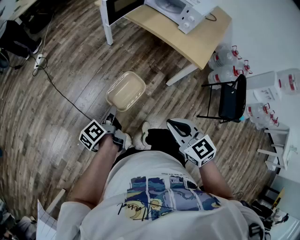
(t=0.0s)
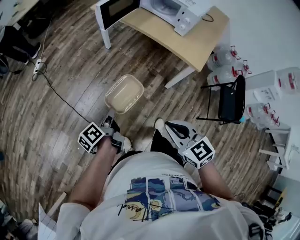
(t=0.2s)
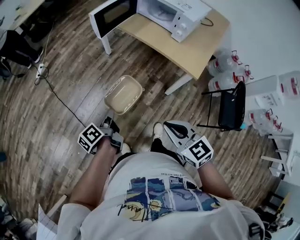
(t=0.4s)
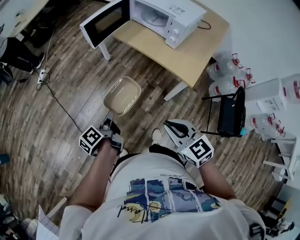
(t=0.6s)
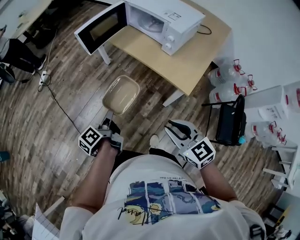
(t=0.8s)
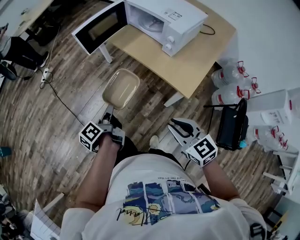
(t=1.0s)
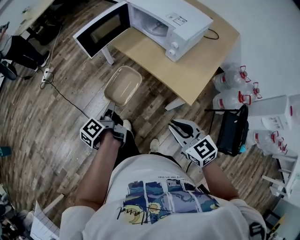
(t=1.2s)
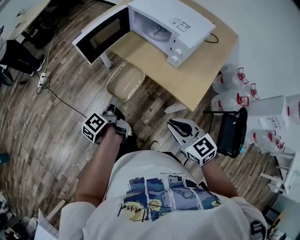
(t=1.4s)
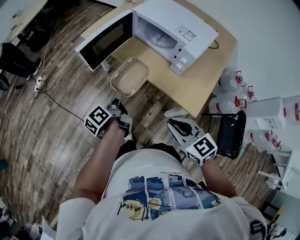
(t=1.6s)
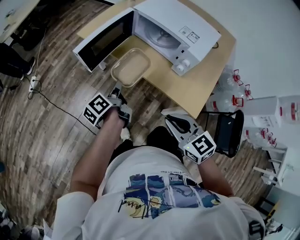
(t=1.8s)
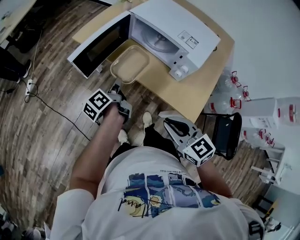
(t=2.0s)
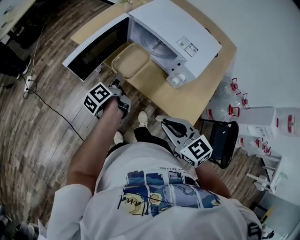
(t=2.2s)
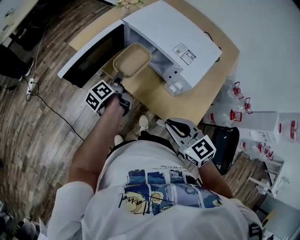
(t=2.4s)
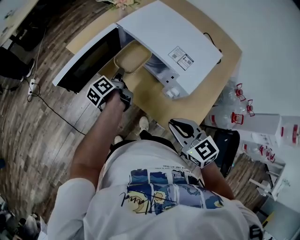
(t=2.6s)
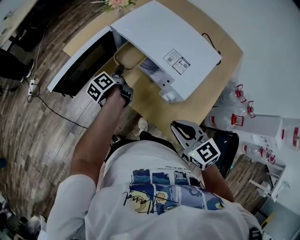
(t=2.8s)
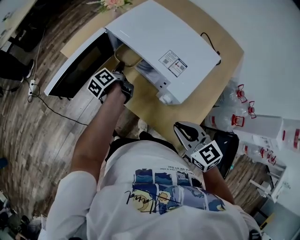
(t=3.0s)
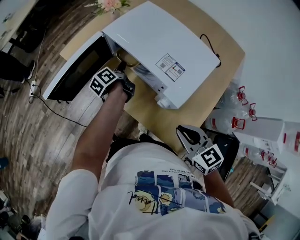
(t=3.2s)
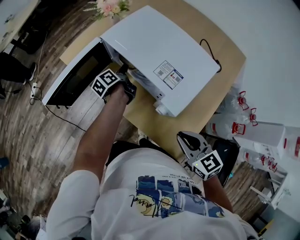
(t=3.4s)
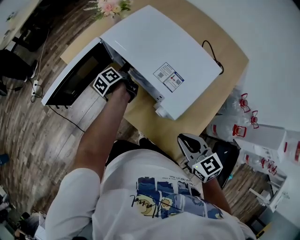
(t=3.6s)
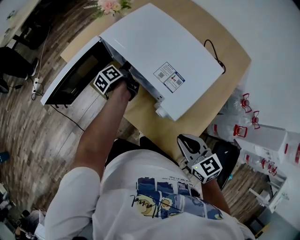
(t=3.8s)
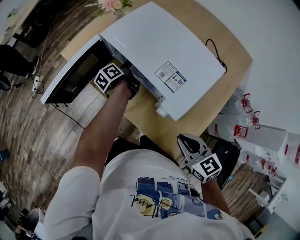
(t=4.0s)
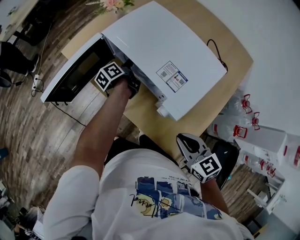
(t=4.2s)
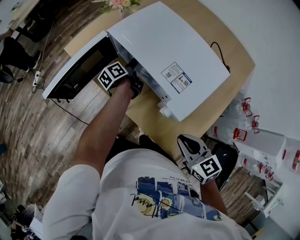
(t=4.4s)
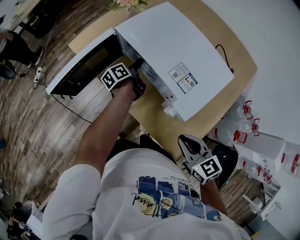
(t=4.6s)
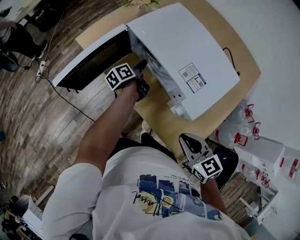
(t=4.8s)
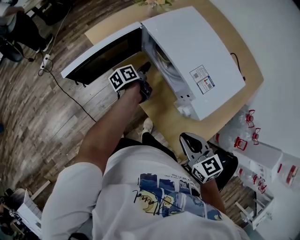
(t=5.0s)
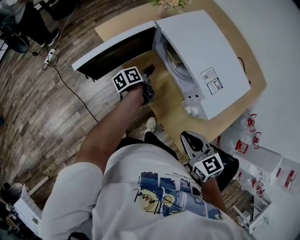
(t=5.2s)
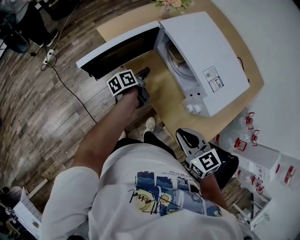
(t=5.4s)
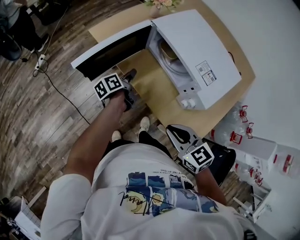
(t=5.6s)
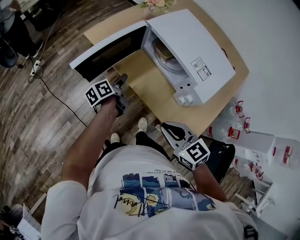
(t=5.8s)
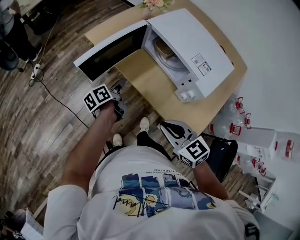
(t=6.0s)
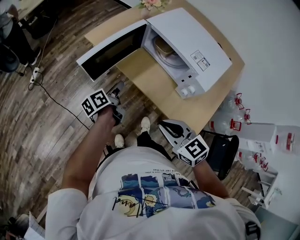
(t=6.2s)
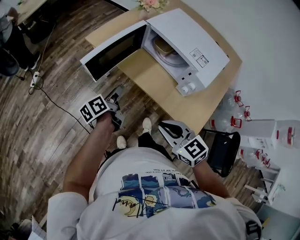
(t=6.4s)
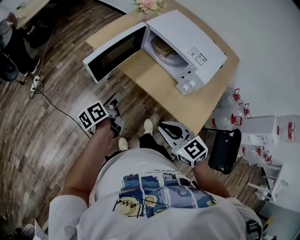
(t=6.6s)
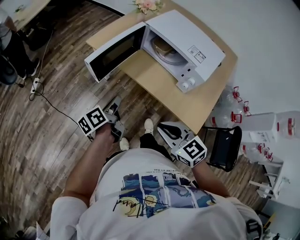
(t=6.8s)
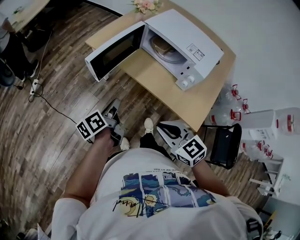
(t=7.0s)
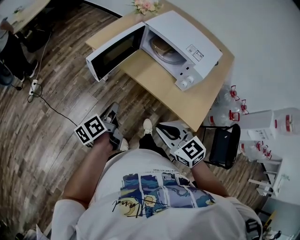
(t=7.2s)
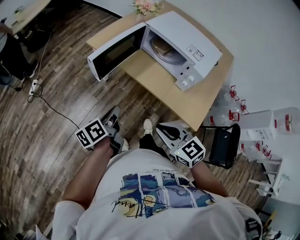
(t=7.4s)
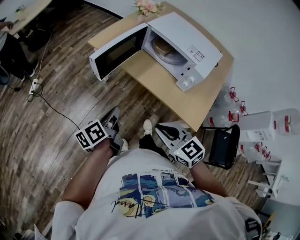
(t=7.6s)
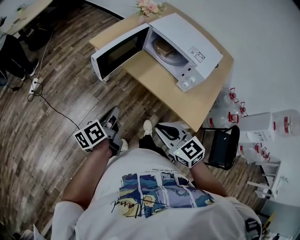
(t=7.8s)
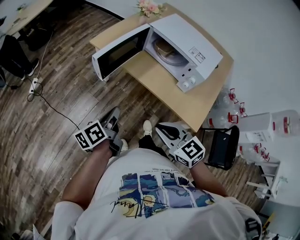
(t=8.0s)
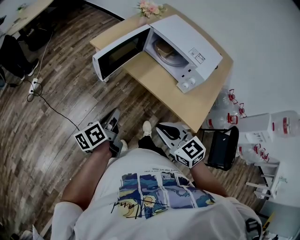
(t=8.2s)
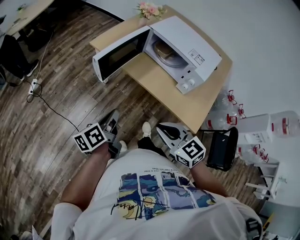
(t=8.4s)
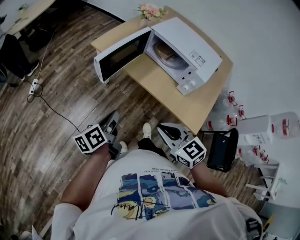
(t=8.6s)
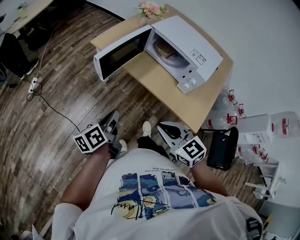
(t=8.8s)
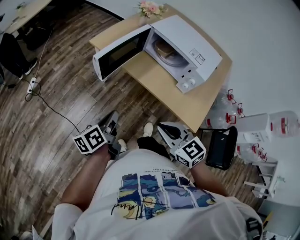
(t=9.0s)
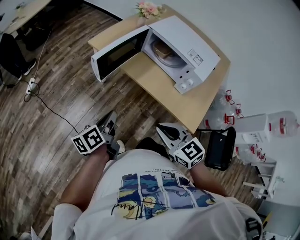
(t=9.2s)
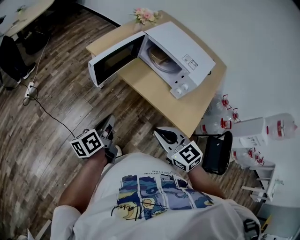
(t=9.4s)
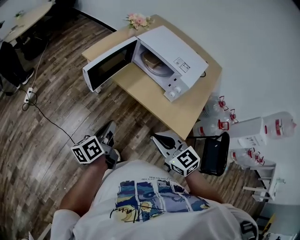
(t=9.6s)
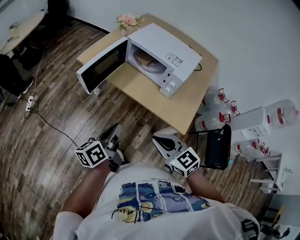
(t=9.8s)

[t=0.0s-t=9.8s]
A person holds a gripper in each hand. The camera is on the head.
t=0.0s to t=1.4s: The right gripper heads to the right and forward, covering roughly 30 cm. The left gripper goes about 30 cm forward and to the right.
t=1.4s to t=2.8s: The left gripper goes about 40 cm forward and to the right. Meanwhile the right gripper goes about 25 cm forward and to the right.
t=2.8s to t=4.2s: The left gripper shifts about 10 cm to the right and forward, while the right gripper goes roughly 5 cm to the right.
t=4.2s to t=5.6s: The left gripper travels to the left and backward by roughly 20 cm, while the right gripper shifts roughly 15 cm to the left.
t=5.6s to t=7.0s: The left gripper moves backward, to the left and upward, some 25 cm, and closes its fingers; the right gripper travels to the left and backward by roughly 15 cm.
t=7.0s to t=8.4s: The left gripper shifts about 5 cm backward.
t=8.4s to t=9.8s: The left gripper travels to the right, upward and backward by some 10 cm. Meanwhile the right gripper moves to the right, about 5 cm.

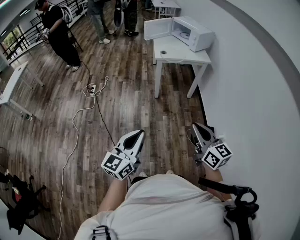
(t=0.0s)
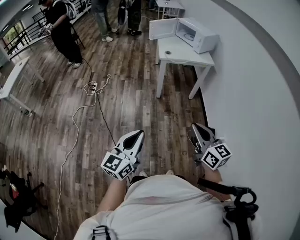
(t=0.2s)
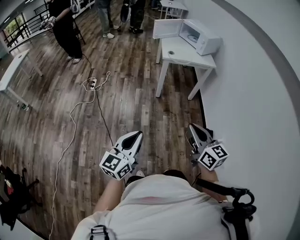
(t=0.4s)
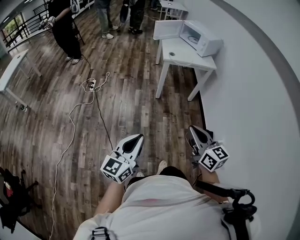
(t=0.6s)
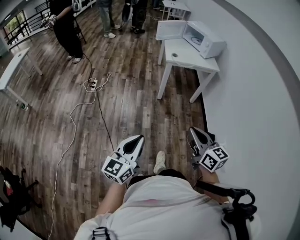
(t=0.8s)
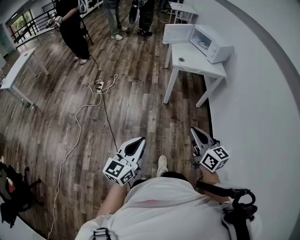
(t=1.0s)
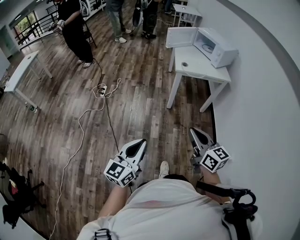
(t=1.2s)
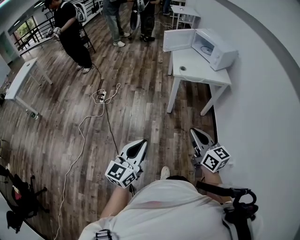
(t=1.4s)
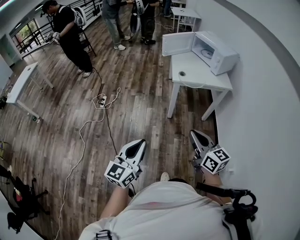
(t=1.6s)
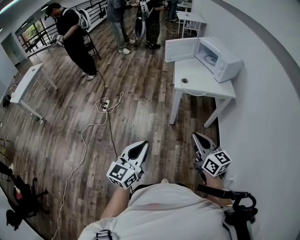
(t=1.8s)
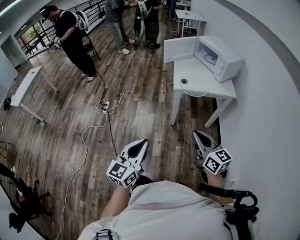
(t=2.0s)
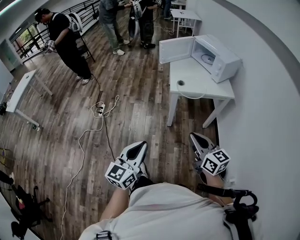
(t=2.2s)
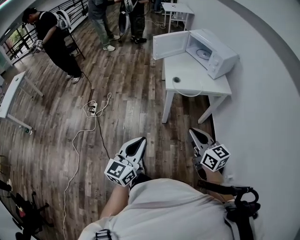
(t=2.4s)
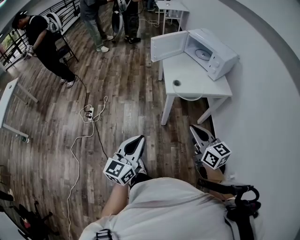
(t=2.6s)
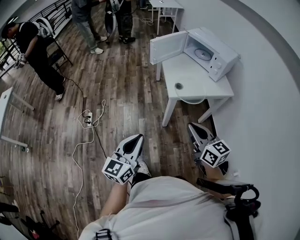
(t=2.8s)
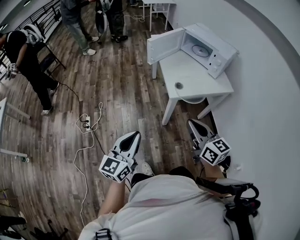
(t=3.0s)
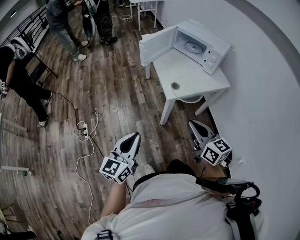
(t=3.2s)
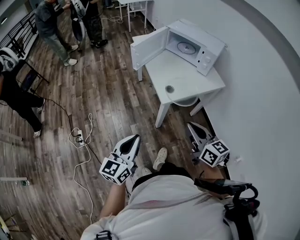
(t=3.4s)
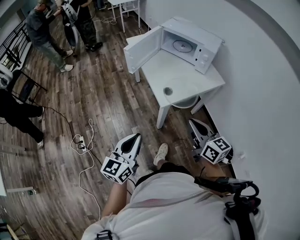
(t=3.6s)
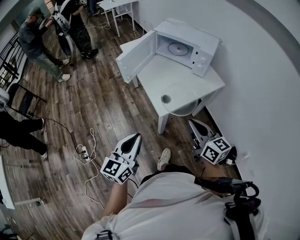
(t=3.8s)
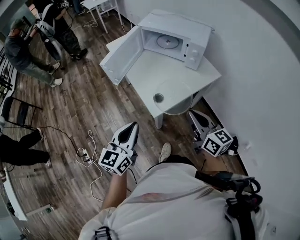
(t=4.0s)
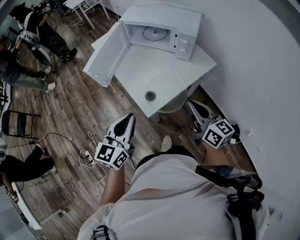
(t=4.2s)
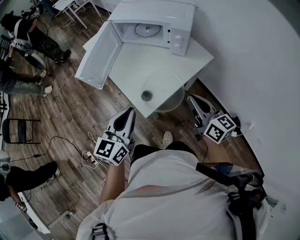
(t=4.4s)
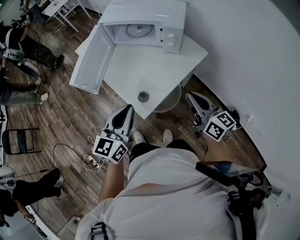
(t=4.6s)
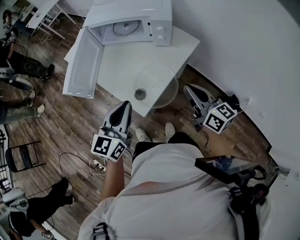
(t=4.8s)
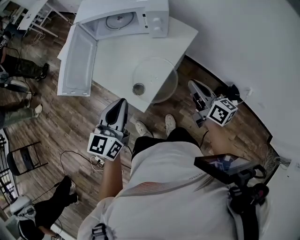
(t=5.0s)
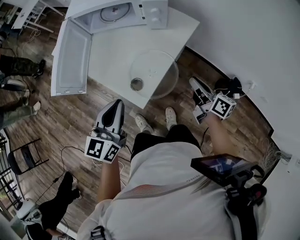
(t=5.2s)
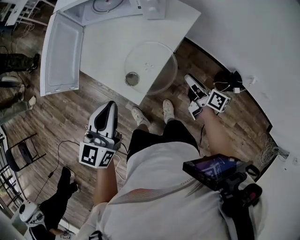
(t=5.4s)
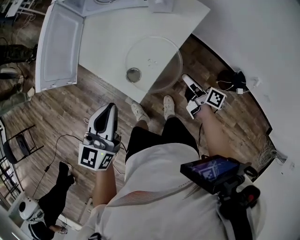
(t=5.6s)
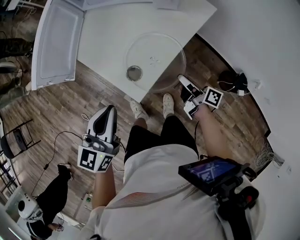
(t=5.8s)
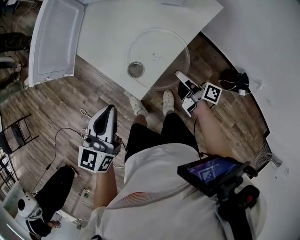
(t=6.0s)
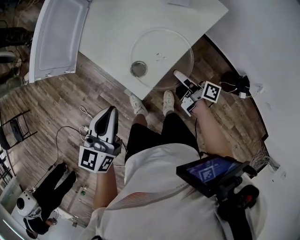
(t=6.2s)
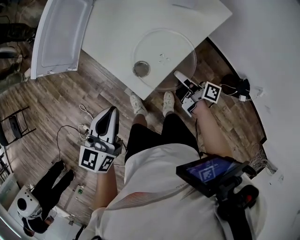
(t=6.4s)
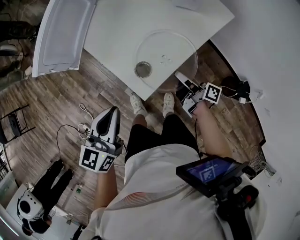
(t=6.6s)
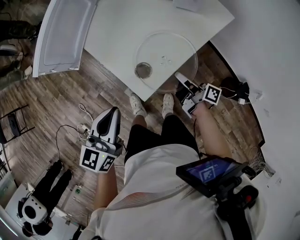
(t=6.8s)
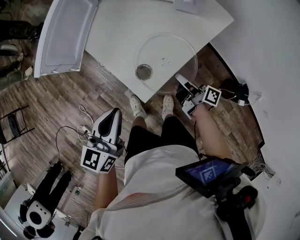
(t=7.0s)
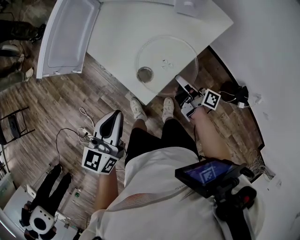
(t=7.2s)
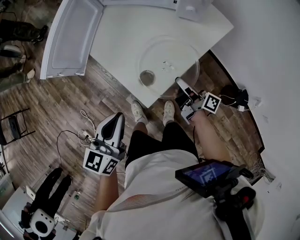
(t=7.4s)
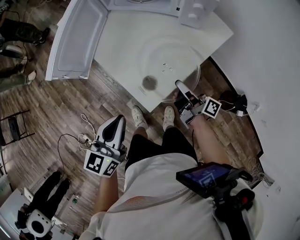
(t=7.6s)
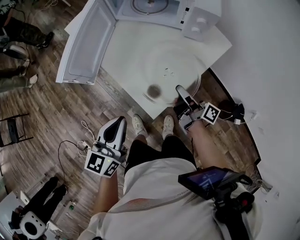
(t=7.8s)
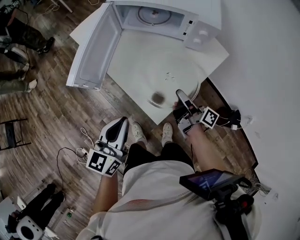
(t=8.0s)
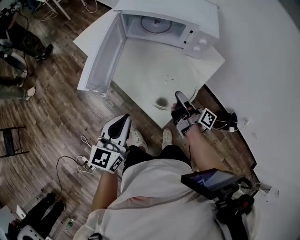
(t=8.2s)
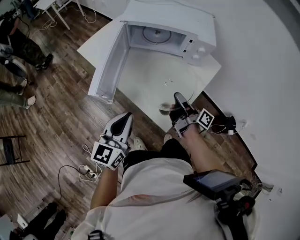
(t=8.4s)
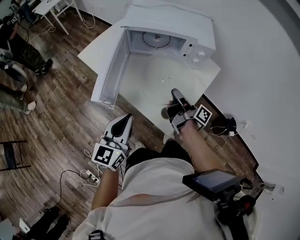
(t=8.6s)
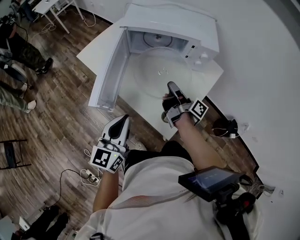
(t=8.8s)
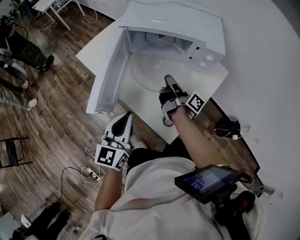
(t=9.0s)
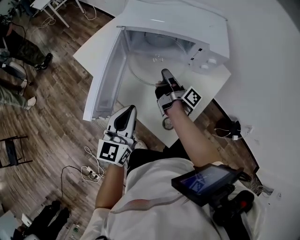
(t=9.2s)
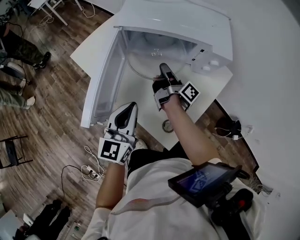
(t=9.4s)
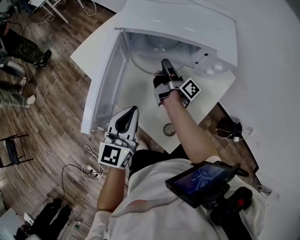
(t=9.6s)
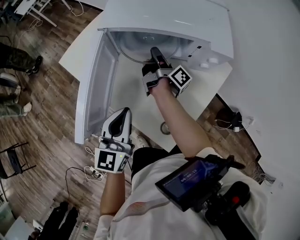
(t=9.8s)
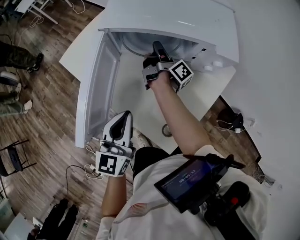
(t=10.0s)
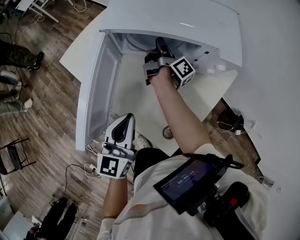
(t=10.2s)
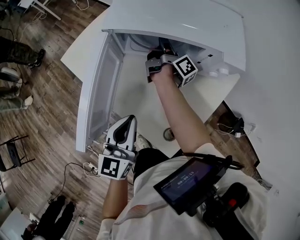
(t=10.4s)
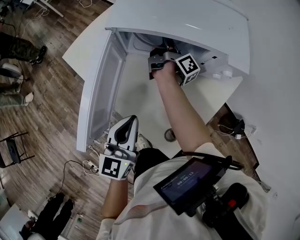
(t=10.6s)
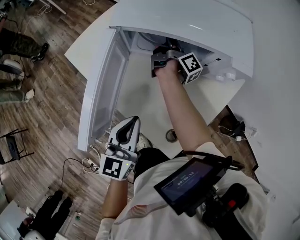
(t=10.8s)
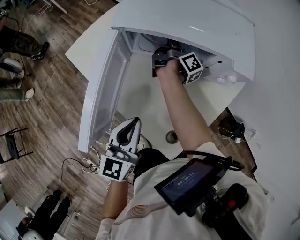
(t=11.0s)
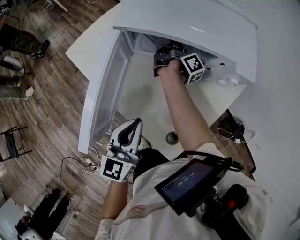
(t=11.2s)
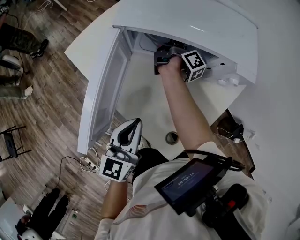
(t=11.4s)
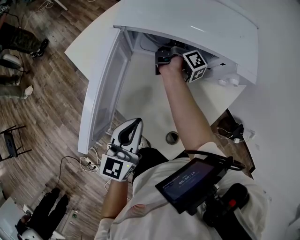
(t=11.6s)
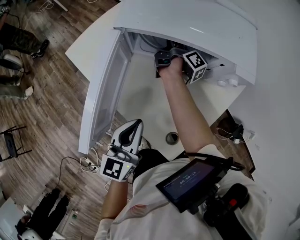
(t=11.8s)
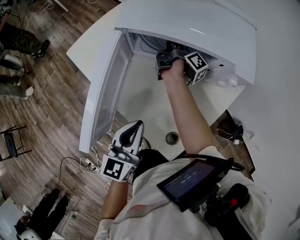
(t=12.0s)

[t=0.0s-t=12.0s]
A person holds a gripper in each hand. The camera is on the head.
t=0.0s to t=1.6s: The two grippers go roughly 25 cm forward.
t=1.6s to t=3.0s: Both grippers travel together forward, about 35 cm.
t=3.0s to t=4.4s: The left gripper moves approximately 40 cm, and changes its angle by roughly 30 degrees. The right gripper moves about 30 cm, and changes its angle by roughly 30 degrees.
t=4.4s to t=6.0s: The right gripper travels downward by approximately 30 cm, twists roughly 50 degrees clockwise, seen from behind, and opens up. Meanwhile the left gripper moves downward, about 10 cm.
t=6.0s to t=7.6s: The right gripper shifts about 10 cm upward and to the left, and closes up.
t=7.6s to t=9.0s: The two grippers go some 20 cm forward, to the left and upward.
t=9.0s to t=10.4s: The right gripper goes some 25 cm forward, while the left gripper travels forward by about 10 cm.
t=10.4s to t=12.0s: The right gripper opens up.

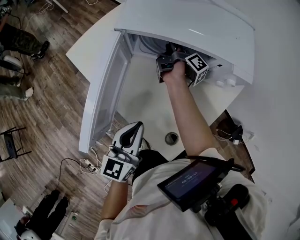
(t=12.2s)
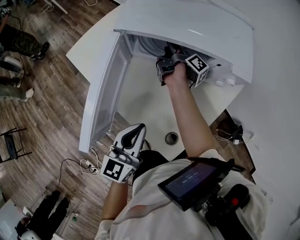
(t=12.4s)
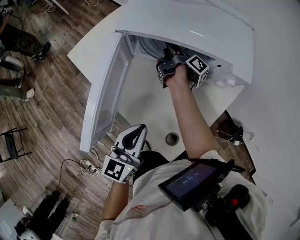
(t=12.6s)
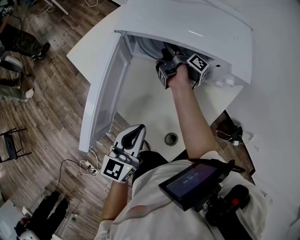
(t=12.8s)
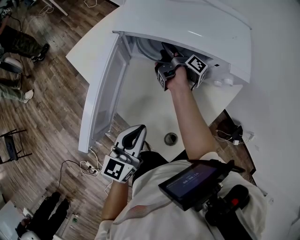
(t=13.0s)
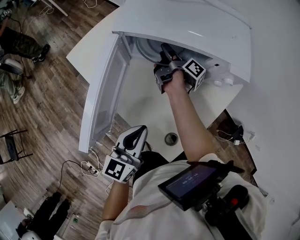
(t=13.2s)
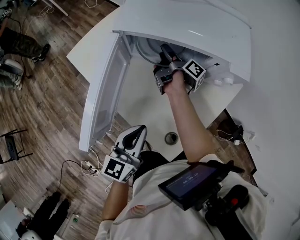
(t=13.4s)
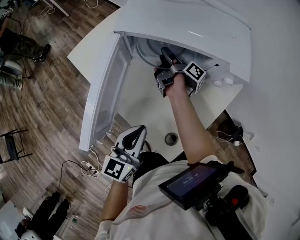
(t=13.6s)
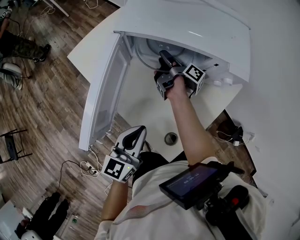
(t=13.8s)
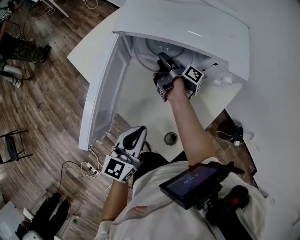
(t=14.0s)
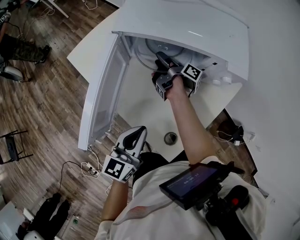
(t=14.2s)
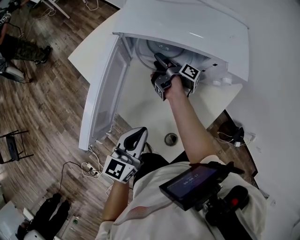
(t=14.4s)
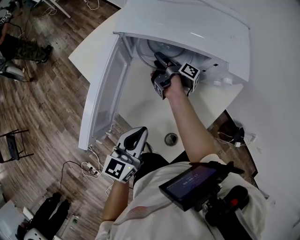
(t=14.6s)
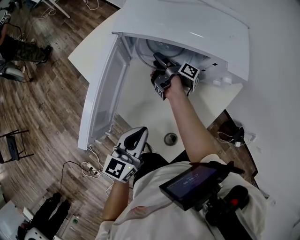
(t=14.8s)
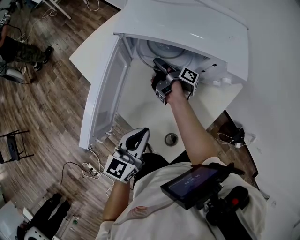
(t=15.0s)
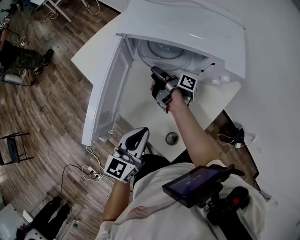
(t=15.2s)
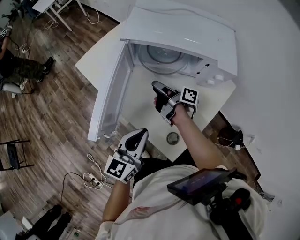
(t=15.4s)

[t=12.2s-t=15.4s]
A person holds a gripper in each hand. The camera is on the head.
t=12.2s to t=13.8s: The right gripper travels backward by roughly 5 cm.
t=13.8s to t=15.4s: The right gripper is displaced backward by approximately 10 cm, and changes its angle by approximately 20 degrees.
